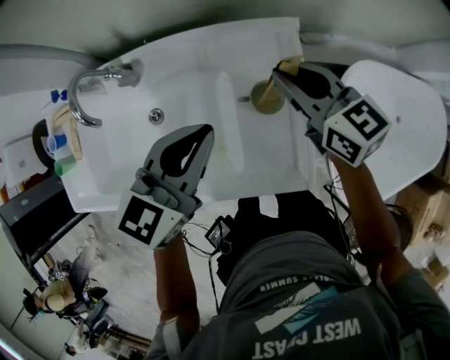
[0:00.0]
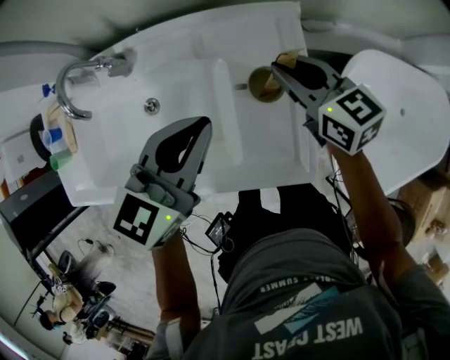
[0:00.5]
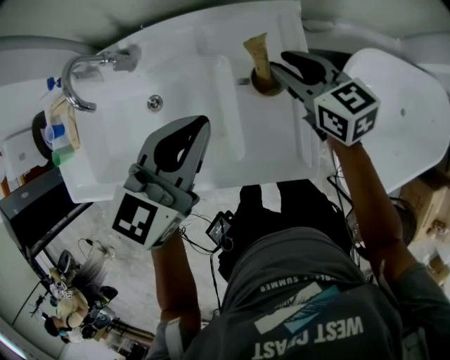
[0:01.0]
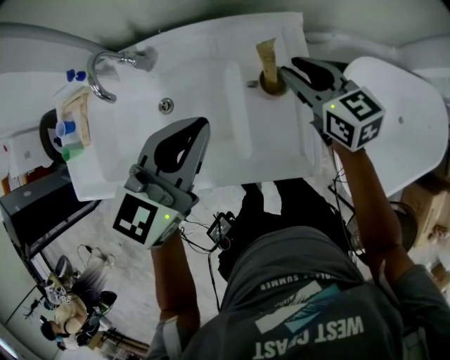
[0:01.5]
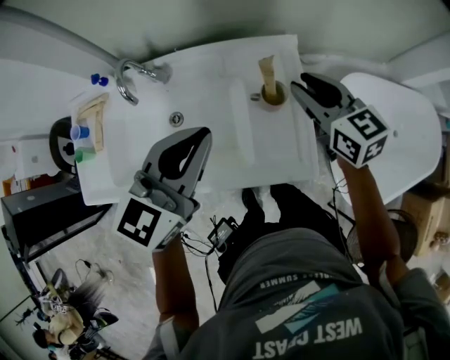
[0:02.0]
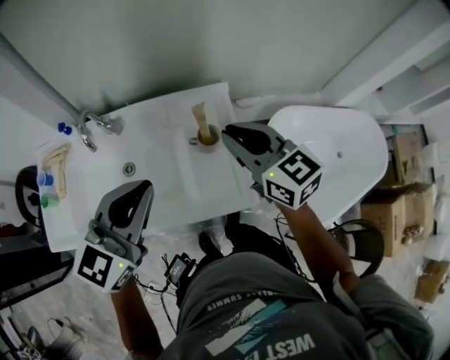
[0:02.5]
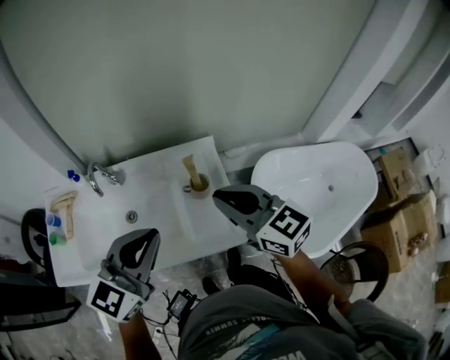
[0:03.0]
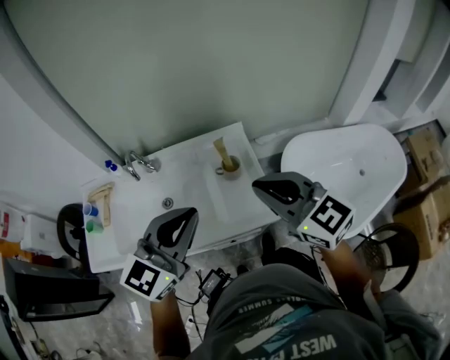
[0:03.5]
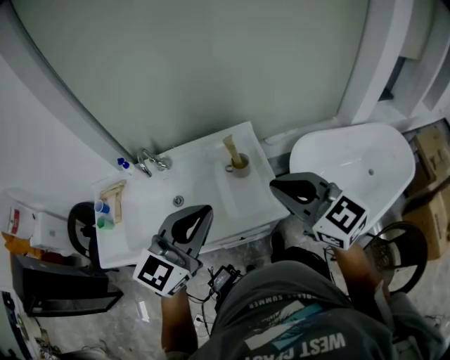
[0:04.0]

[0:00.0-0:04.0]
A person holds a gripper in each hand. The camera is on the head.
0:00.0 to 0:02.0: Both grippers travel together upward and backward, some 10 cm.
0:02.0 to 0:04.0: The left gripper shifts some 20 cm backward and upward; the right gripper shifts approximately 30 cm backward and upward, and closes up.

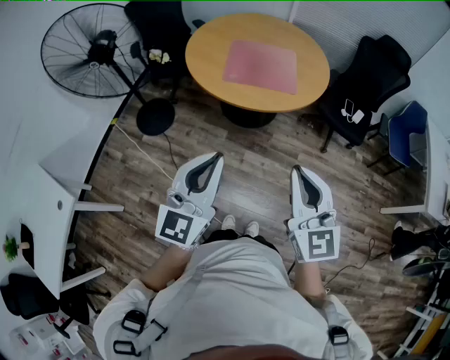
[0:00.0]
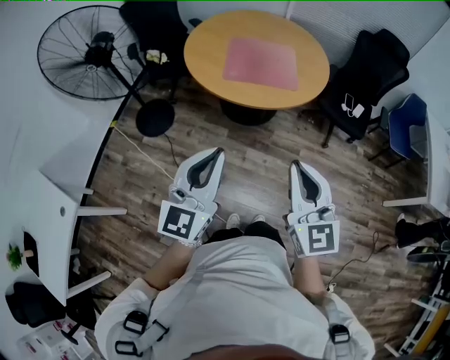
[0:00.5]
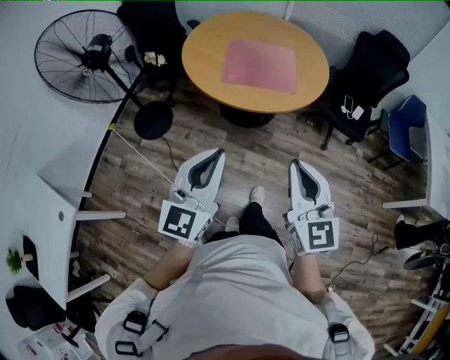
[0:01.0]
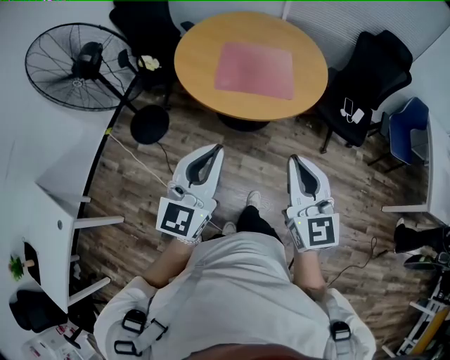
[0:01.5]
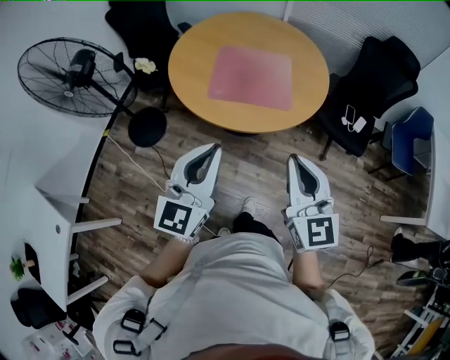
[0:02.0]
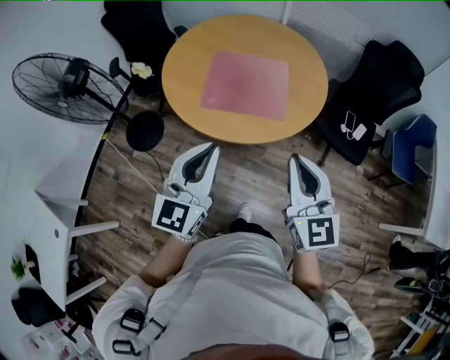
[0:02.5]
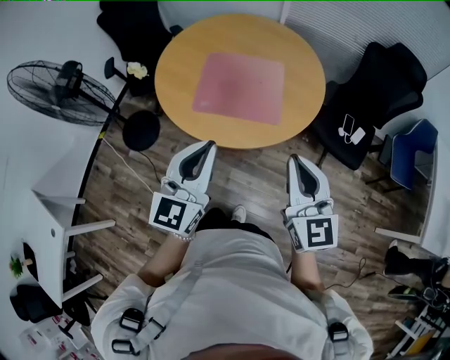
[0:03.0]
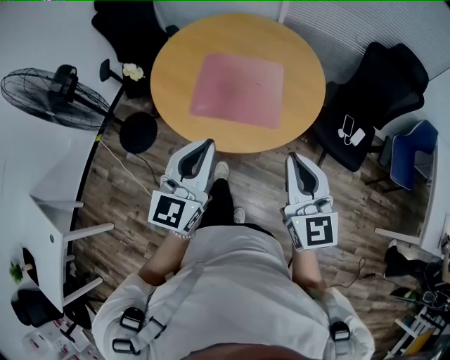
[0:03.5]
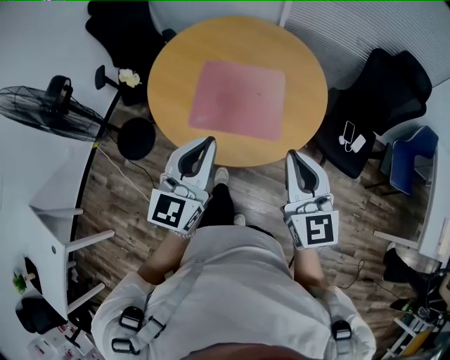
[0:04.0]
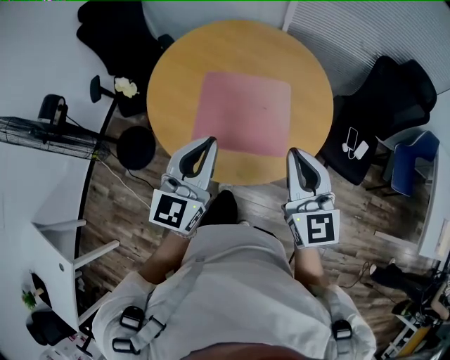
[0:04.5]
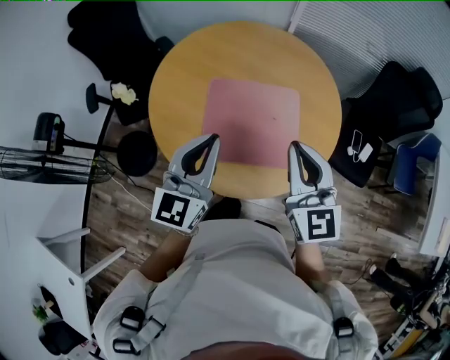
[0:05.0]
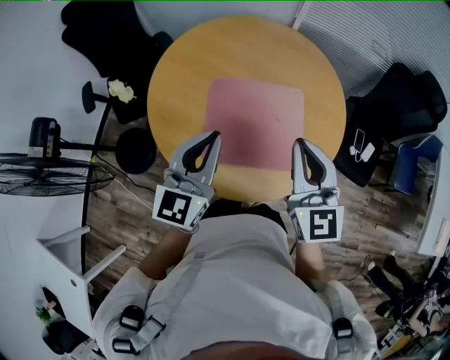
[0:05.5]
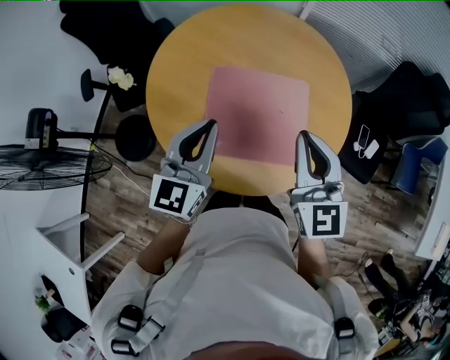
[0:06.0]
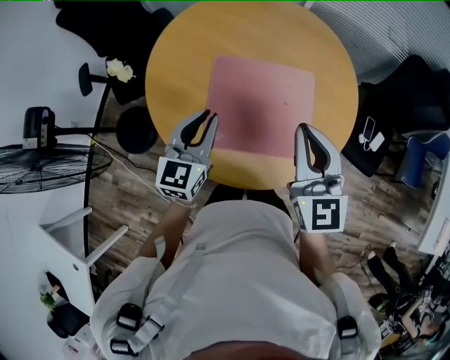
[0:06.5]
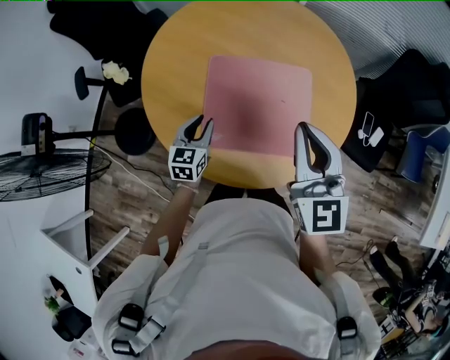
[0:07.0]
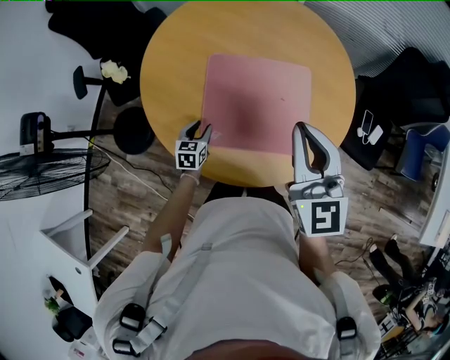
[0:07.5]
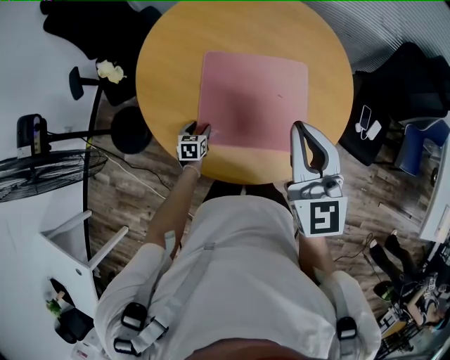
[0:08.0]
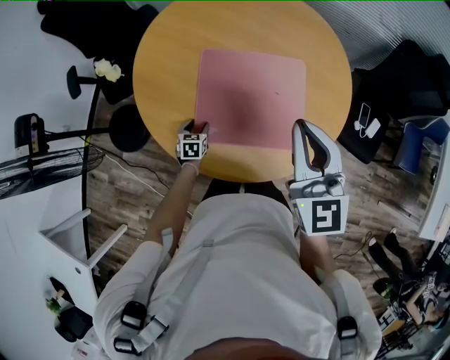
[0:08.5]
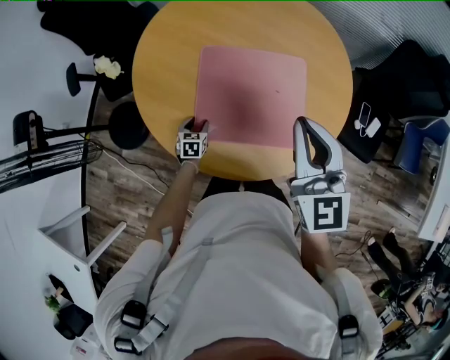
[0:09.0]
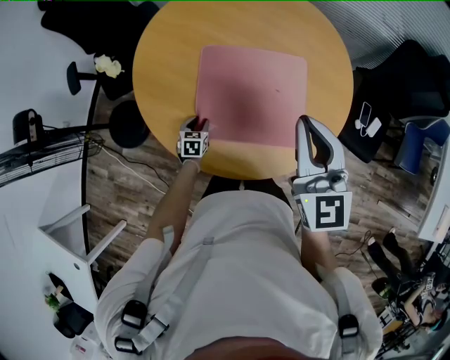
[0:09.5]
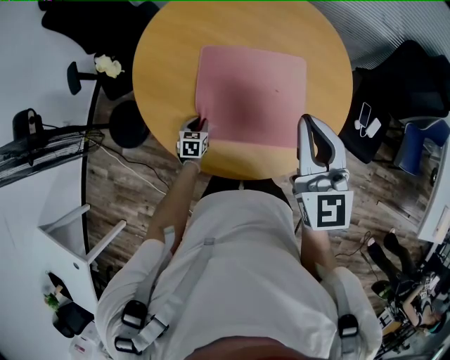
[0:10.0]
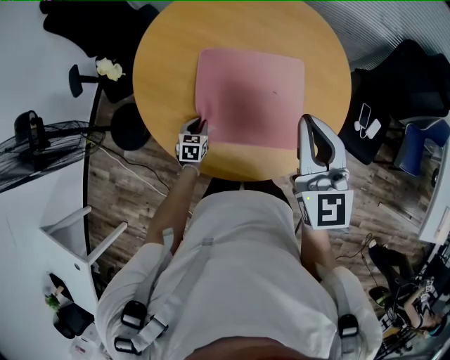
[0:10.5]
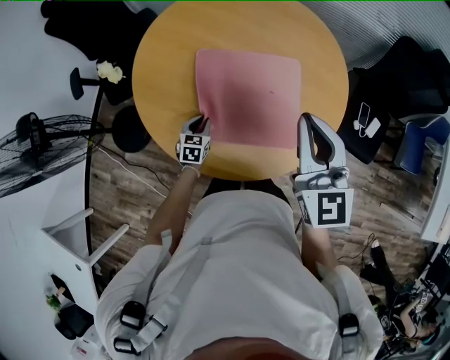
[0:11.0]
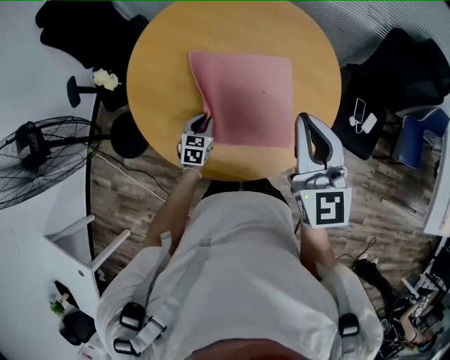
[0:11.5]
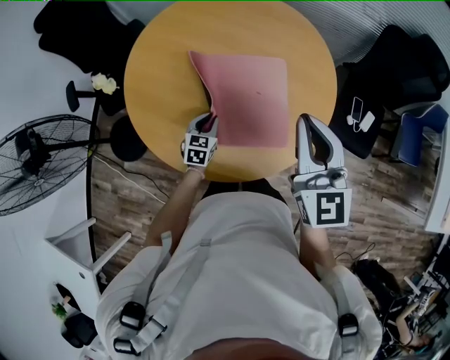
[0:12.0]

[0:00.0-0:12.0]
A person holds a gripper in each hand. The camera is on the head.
0:00.0 to 0:02.0: The grippers both shift forward by roughly 20 cm.
0:02.0 to 0:04.0: The two grippers go roughly 25 cm forward.
0:04.0 to 0:06.0: Both grippers travel together forward and to the left, some 25 cm.
0:06.0 to 0:08.0: The left gripper goes some 40 cm downward, angles its fingers downward, by approximately 40 degrees, and opens.
0:08.0 to 0:10.0: The left gripper closes.
0:10.0 to 0:12.0: The left gripper is displaced to the right and upward by about 15 cm, while the right gripper travels to the right by roughly 10 cm.

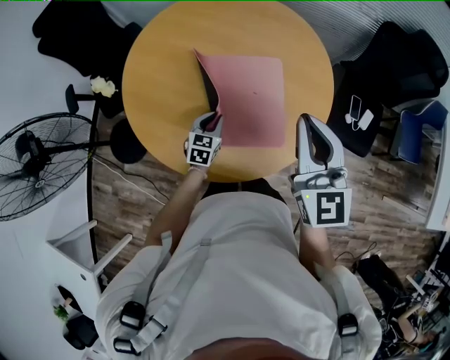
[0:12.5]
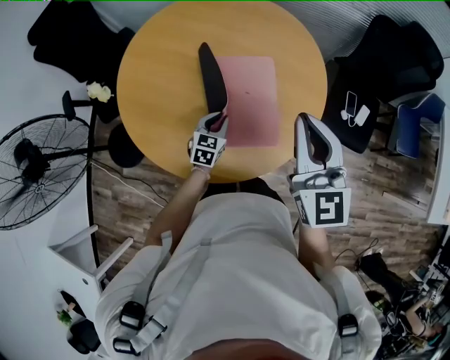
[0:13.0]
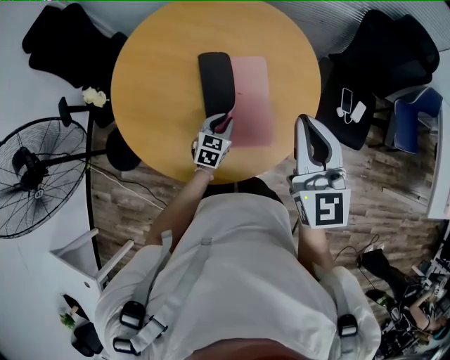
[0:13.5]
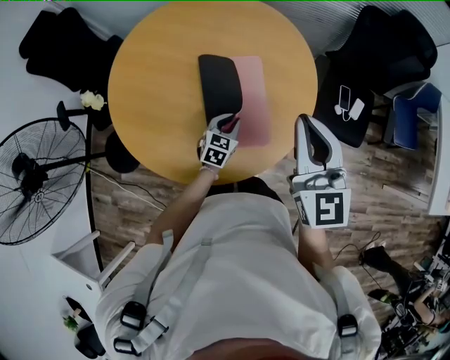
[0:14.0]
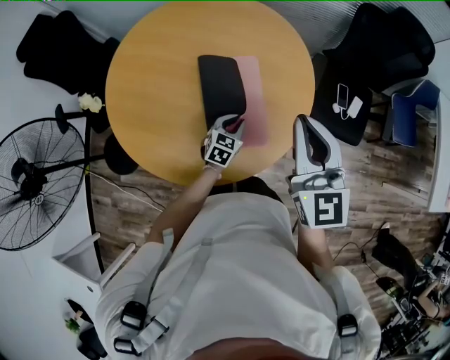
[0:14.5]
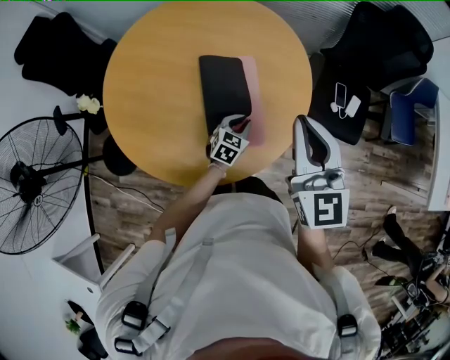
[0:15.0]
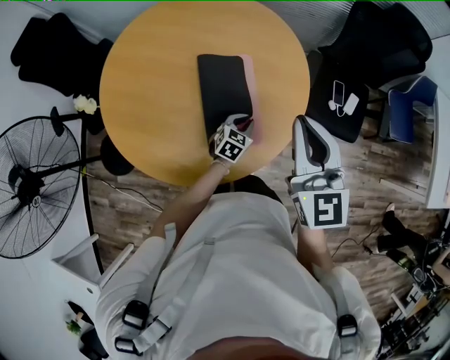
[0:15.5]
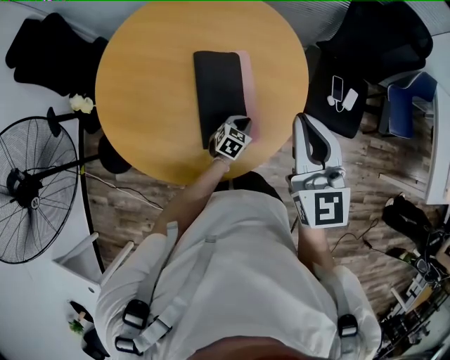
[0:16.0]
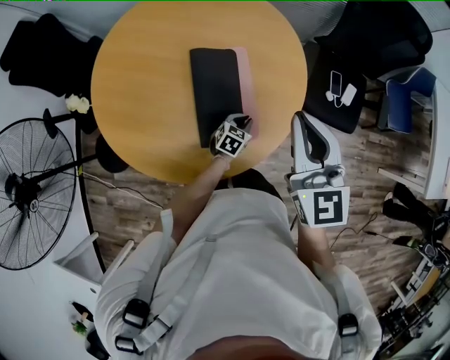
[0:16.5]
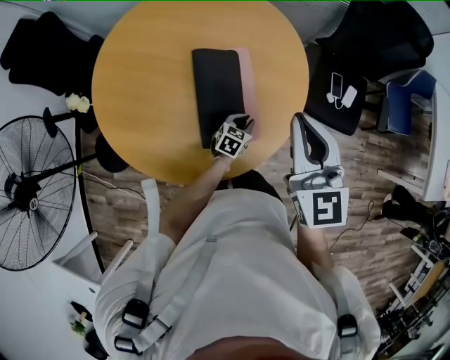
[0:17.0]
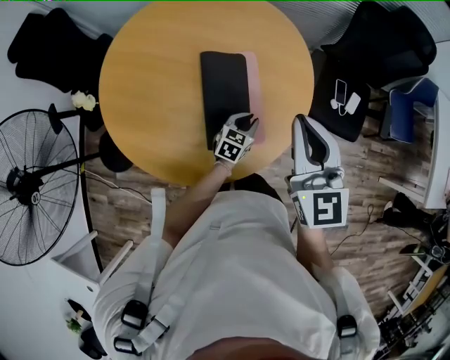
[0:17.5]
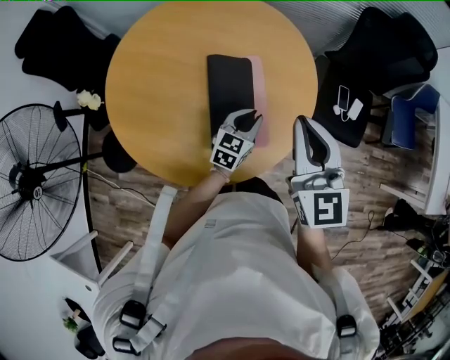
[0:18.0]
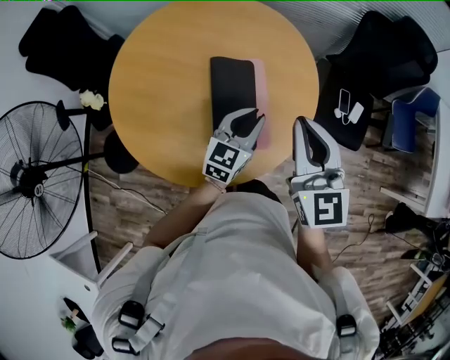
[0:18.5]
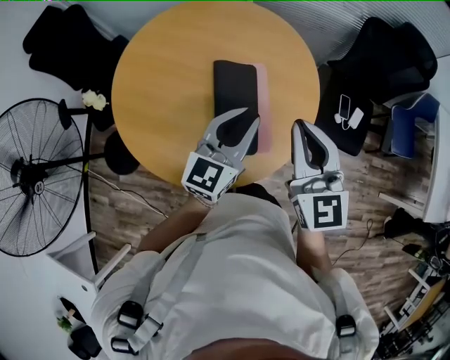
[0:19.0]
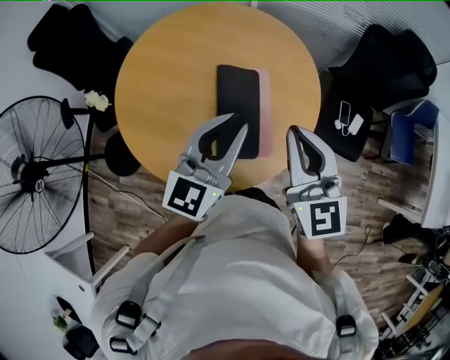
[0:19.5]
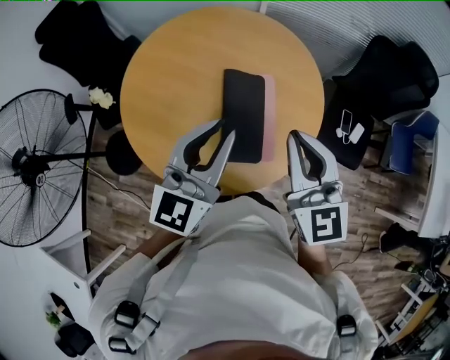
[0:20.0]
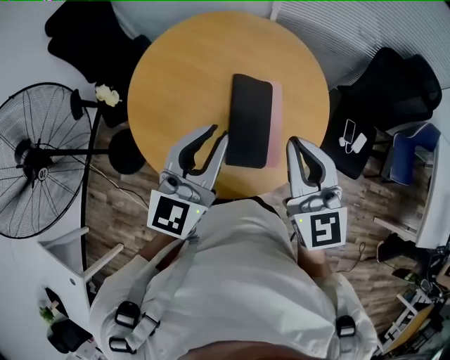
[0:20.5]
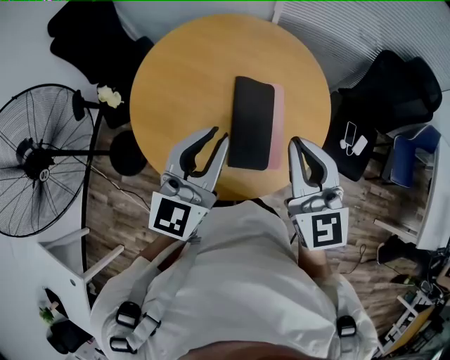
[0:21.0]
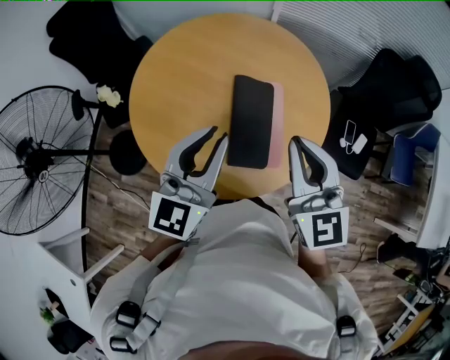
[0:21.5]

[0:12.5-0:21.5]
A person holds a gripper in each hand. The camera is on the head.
0:12.5 to 0:14.5: The right gripper shifts about 5 cm to the right. Meanwhile the left gripper is displaced to the right by about 15 cm.
0:14.5 to 0:17.0: The left gripper travels to the right and downward by approximately 10 cm.
0:17.0 to 0:19.5: The right gripper shifts about 5 cm to the left. Meanwhile the left gripper is displaced upward by about 40 cm, and tips its fingers upward by some 40 degrees.
0:19.5 to 0:21.5: The right gripper shifts by approximately 5 cm. The left gripper travels to the left by some 10 cm.

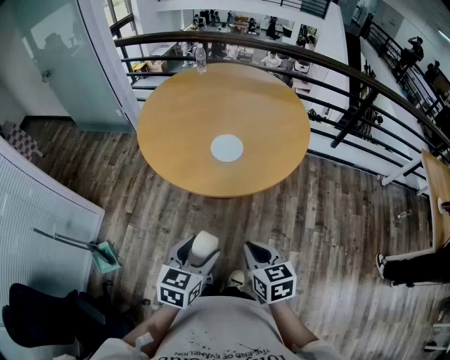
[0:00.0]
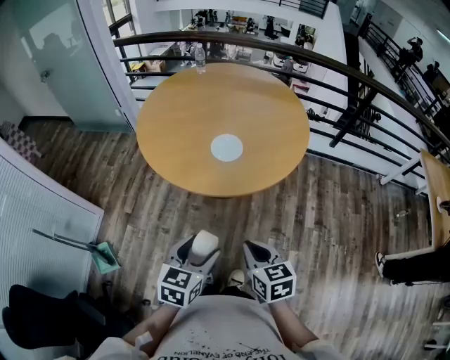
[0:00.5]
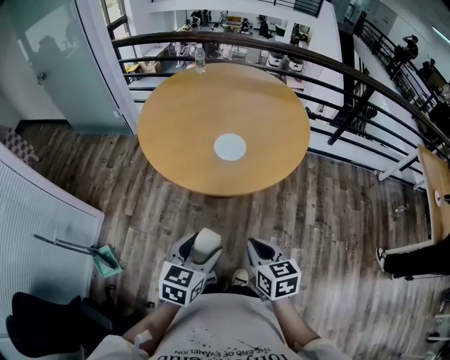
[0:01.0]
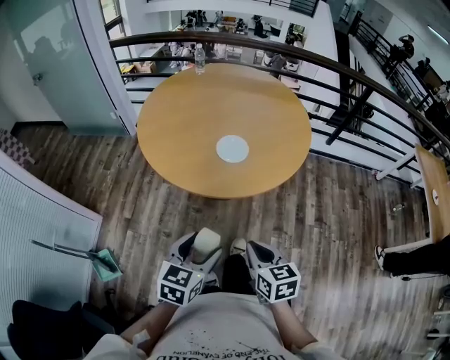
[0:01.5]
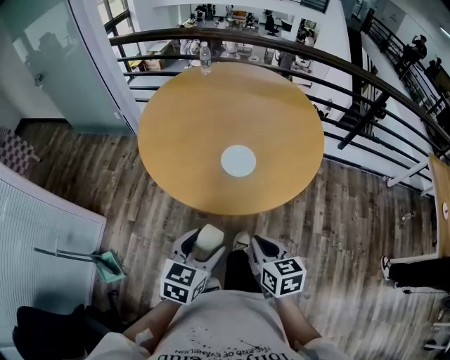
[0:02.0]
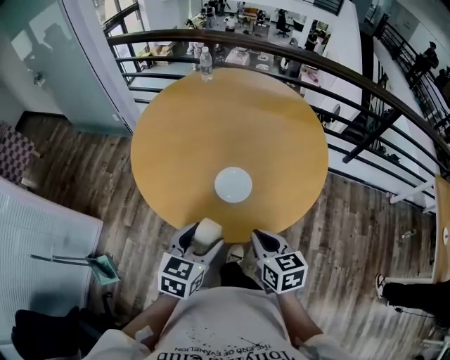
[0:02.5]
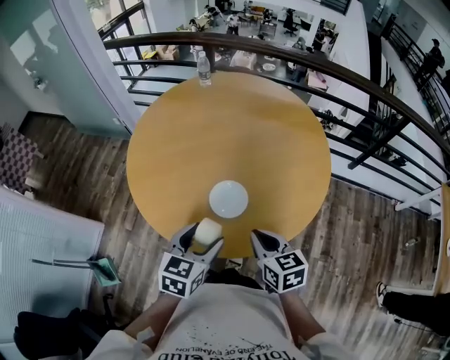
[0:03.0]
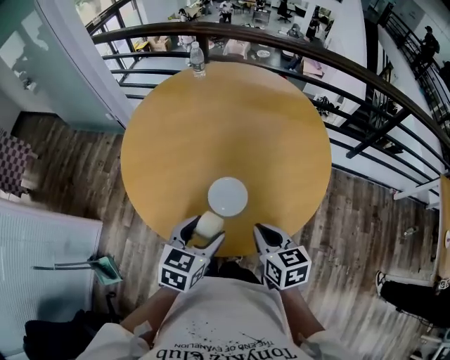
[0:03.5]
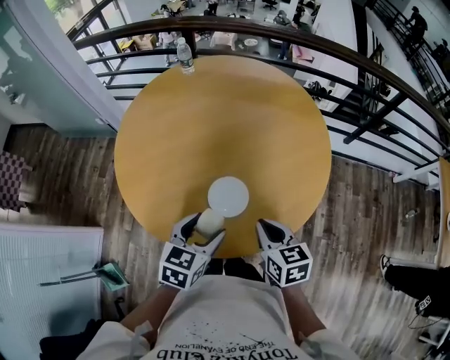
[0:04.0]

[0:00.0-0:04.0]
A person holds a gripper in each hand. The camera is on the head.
0:00.0 to 0:02.0: The two grippers go approximately 10 cm forward.
0:02.0 to 0:04.0: Both grippers travel together forward, about 25 cm.
